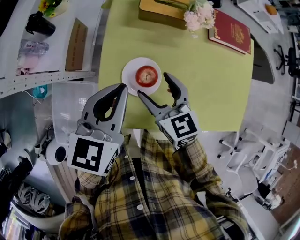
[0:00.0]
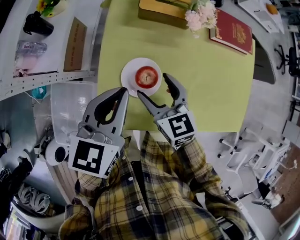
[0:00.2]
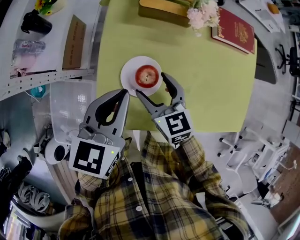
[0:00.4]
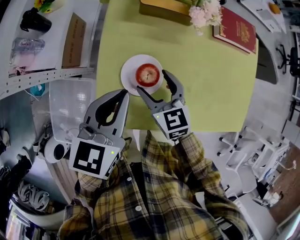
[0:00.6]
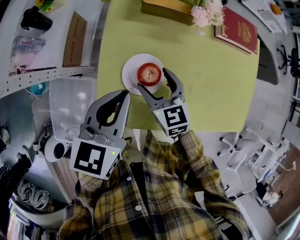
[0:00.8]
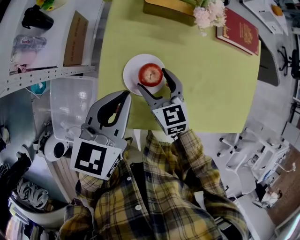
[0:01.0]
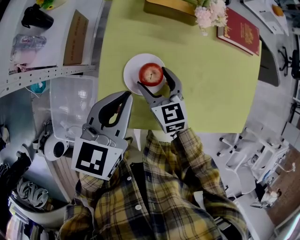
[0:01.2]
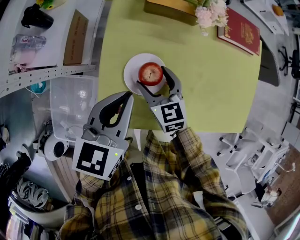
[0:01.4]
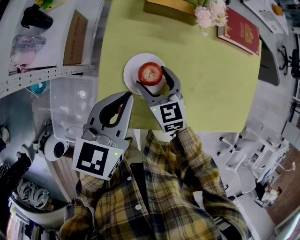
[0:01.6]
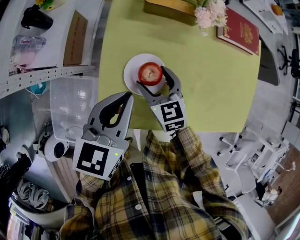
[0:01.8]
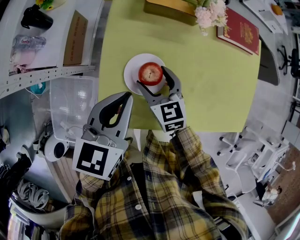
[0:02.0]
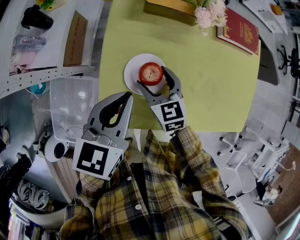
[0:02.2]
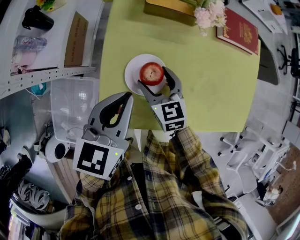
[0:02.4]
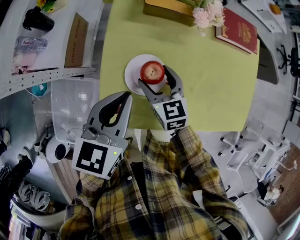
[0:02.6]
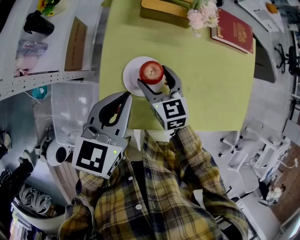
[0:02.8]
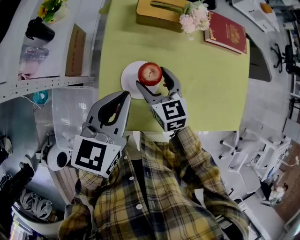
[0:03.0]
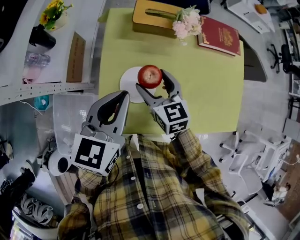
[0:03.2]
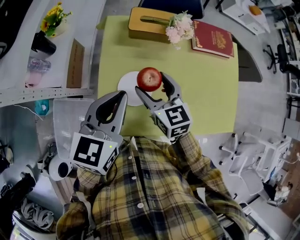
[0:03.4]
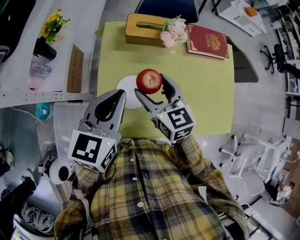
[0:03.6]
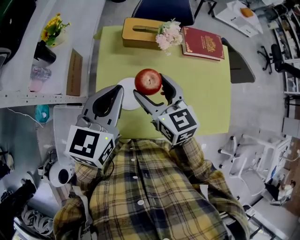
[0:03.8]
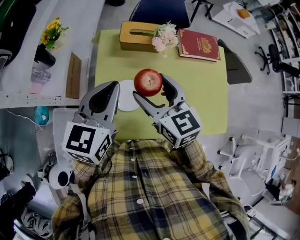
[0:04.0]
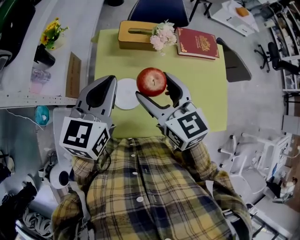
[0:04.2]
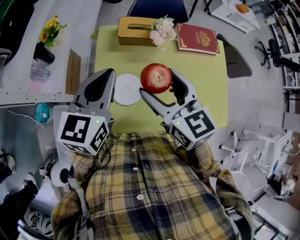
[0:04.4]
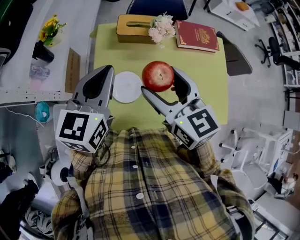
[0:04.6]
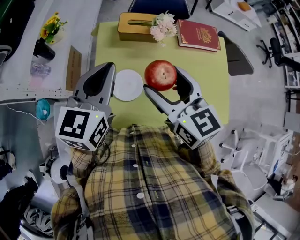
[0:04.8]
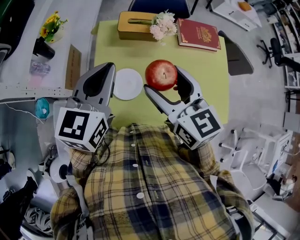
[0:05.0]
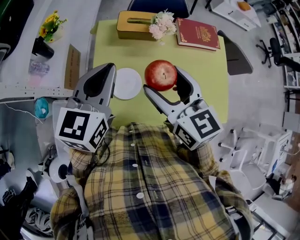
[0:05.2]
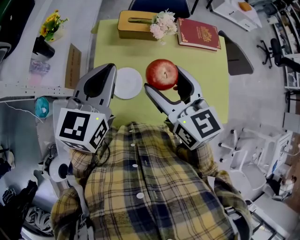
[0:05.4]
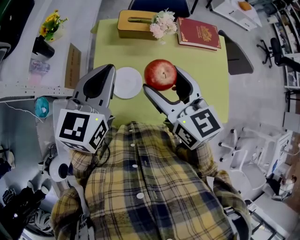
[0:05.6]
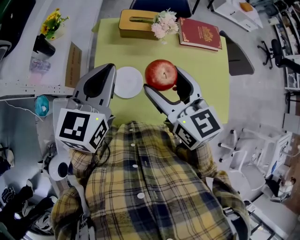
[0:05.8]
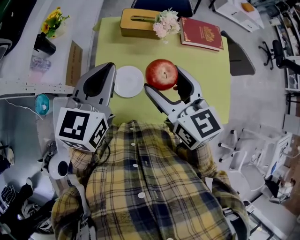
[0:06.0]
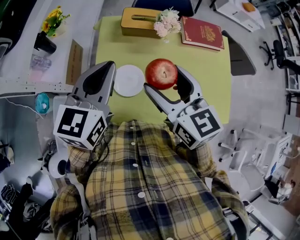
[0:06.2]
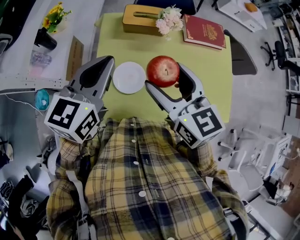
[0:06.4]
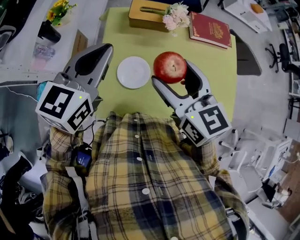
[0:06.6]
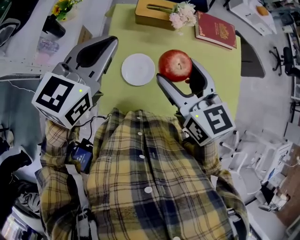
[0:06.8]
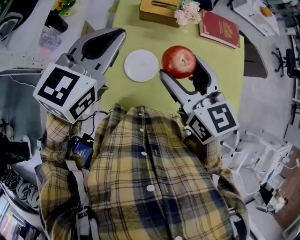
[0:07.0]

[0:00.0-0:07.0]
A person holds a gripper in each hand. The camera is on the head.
0:00.0 to 0:01.4: The right gripper goes roughly 10 cm downward.
0:01.4 to 0:02.8: The grippers move only a little.
0:02.8 to 0:04.2: The left gripper goes some 15 cm upward. The right gripper heads upward, covering approximately 25 cm.
0:04.2 to 0:07.0: The grippers make only small movements.

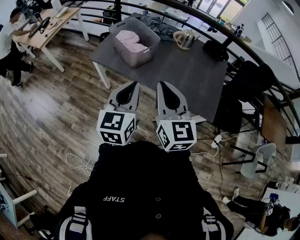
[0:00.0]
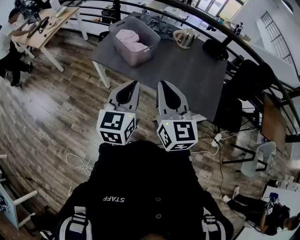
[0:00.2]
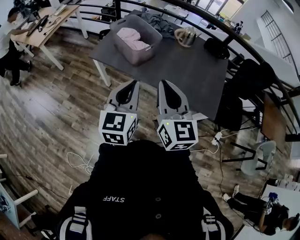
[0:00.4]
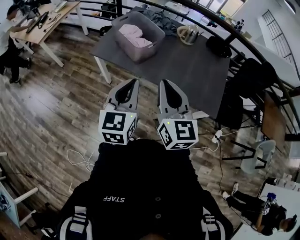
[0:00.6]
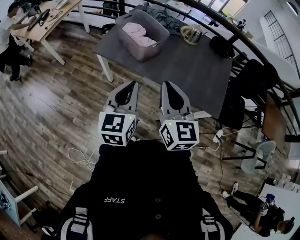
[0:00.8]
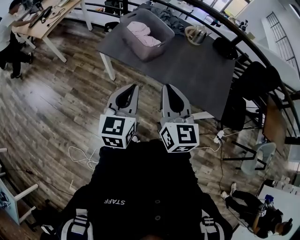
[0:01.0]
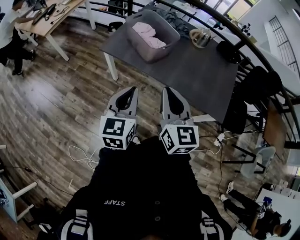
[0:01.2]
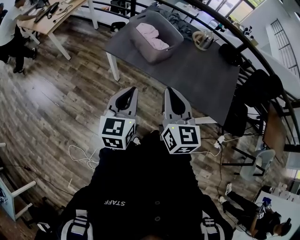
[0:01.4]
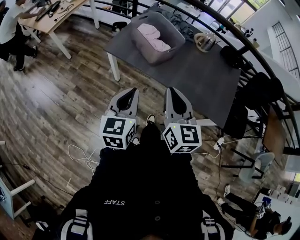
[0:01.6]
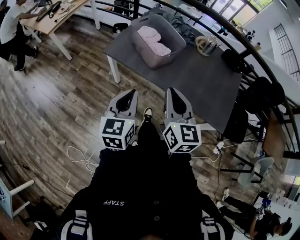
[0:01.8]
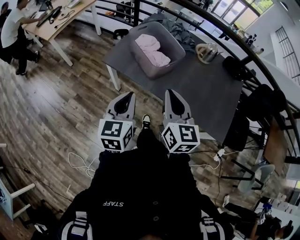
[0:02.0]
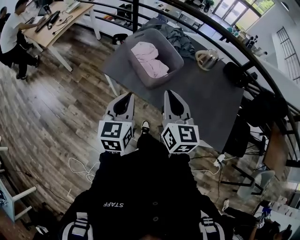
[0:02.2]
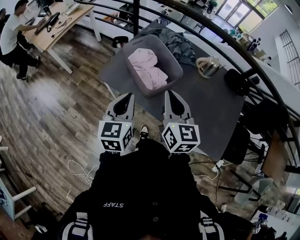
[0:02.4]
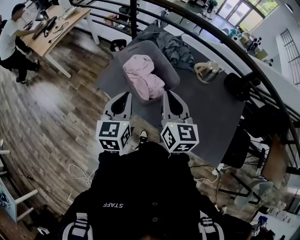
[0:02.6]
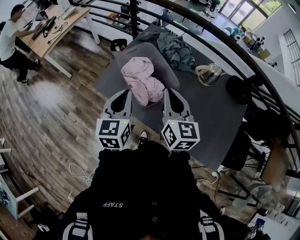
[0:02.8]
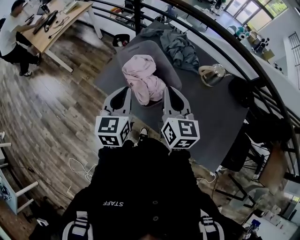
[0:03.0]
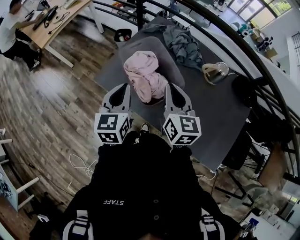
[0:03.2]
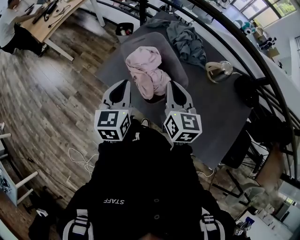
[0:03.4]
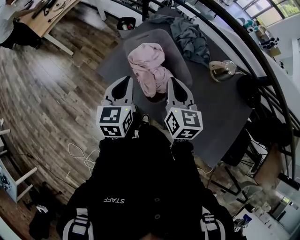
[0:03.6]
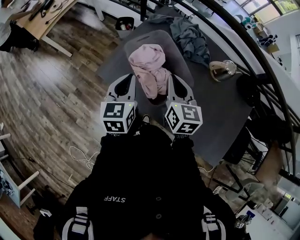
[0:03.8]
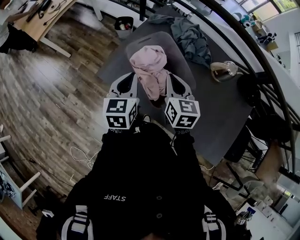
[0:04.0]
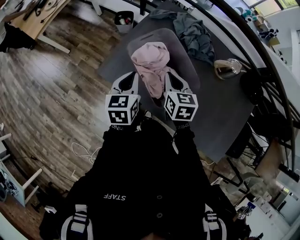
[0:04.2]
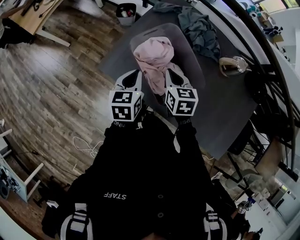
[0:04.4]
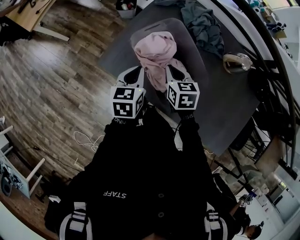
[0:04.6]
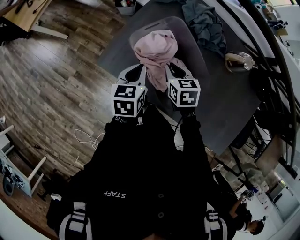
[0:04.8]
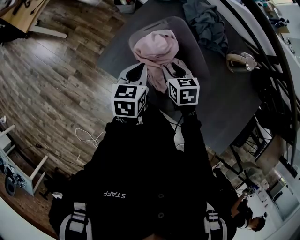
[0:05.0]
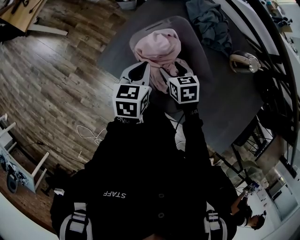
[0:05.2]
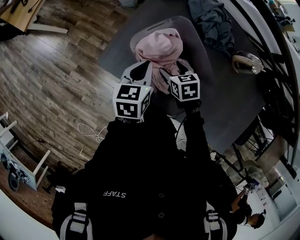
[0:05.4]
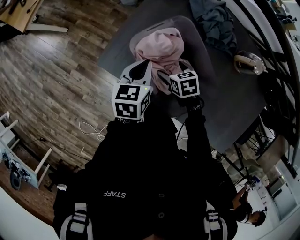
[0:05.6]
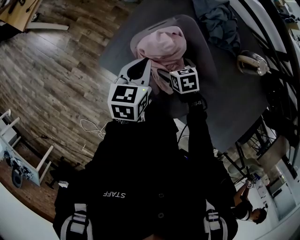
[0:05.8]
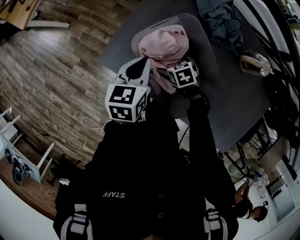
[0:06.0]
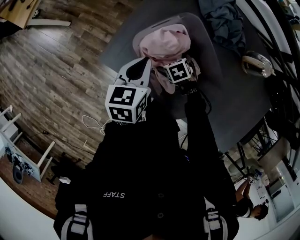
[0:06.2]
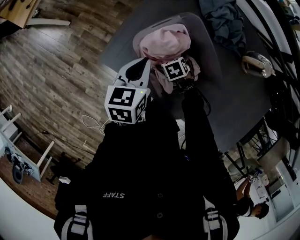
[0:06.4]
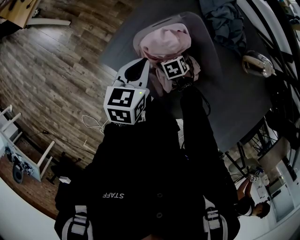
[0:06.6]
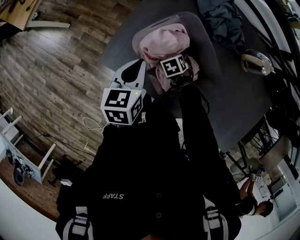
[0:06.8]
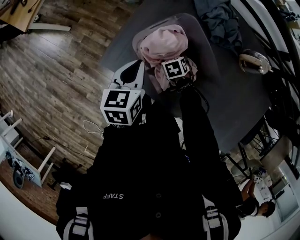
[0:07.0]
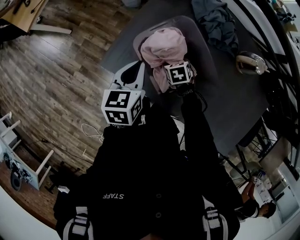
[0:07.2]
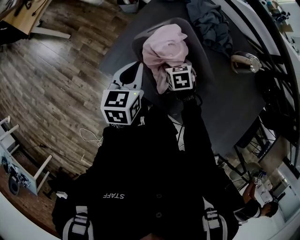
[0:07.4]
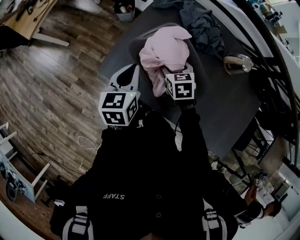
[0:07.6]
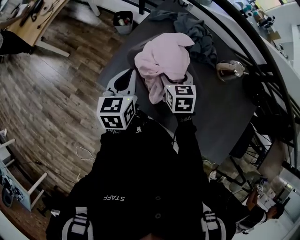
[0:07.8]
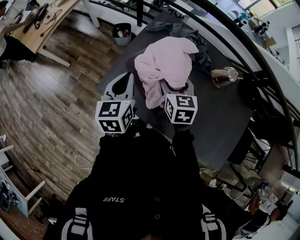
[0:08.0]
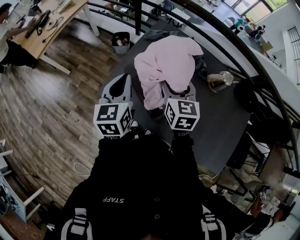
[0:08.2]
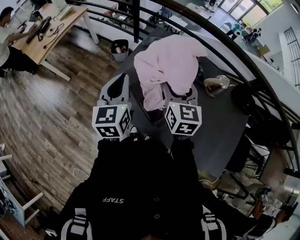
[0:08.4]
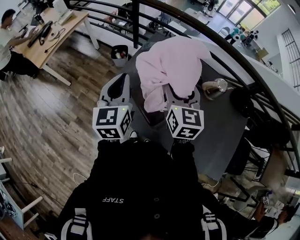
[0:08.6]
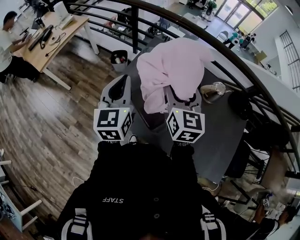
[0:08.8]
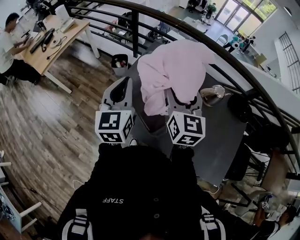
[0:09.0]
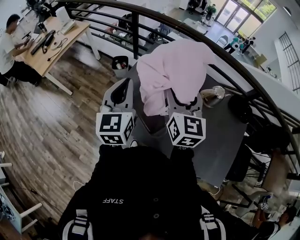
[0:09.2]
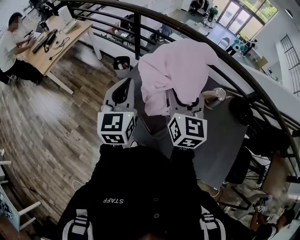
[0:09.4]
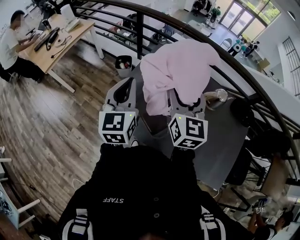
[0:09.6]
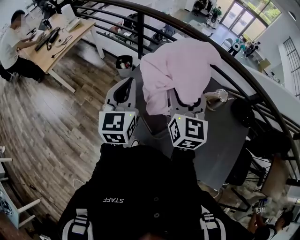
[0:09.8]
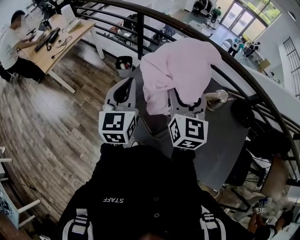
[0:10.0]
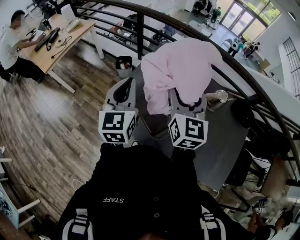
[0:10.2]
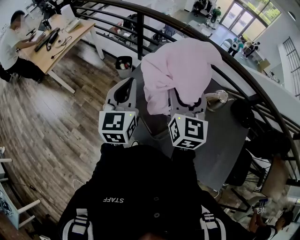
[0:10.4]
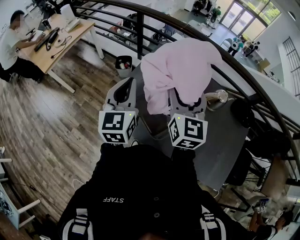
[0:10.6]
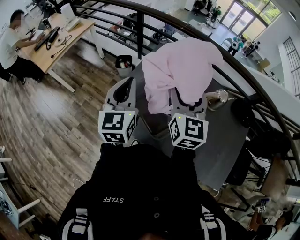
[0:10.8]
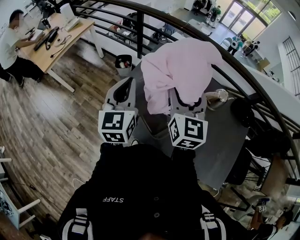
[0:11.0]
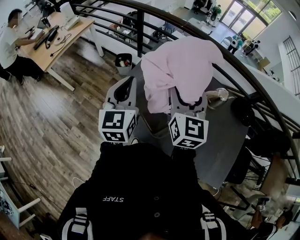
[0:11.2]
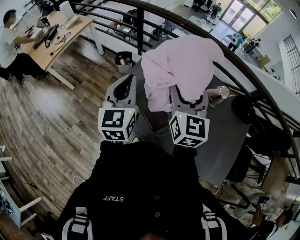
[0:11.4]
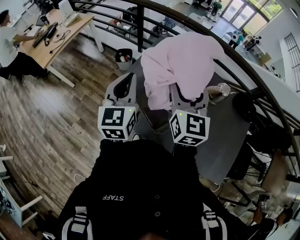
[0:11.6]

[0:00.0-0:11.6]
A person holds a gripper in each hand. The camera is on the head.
0:00.0 to 0:01.4: Both grippers move to the left and downward, about 15 cm.
0:01.4 to 0:02.8: Both grippers travel together forward, about 35 cm.
0:02.8 to 0:04.4: The right gripper moves downward, forward and to the left, approximately 25 cm, and rotates about 30 degrees. The left gripper is displaced downward and forward by roughly 20 cm, and rotates some 20 degrees.
0:04.4 to 0:05.8: The left gripper moves forward, some 10 cm. The right gripper goes approximately 20 cm downward, rotates some 30 degrees, and opens its fingers.
0:05.8 to 0:07.2: The right gripper moves about 10 cm downward and comes back, and closes its fingers.
0:07.2 to 0:08.8: The left gripper shifts some 25 cm upward, and swivels roughly 30 degrees; the right gripper shifts some 50 cm upward, and tilts its fingers roughly 60 degrees upward.
0:08.8 to 0:10.2: The grippers move only a little.
0:10.2 to 0:11.6: Both grippers stay put.

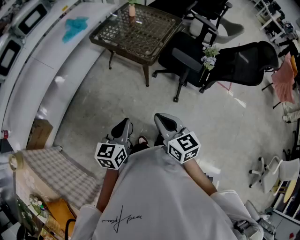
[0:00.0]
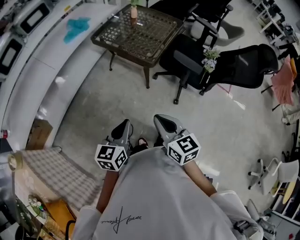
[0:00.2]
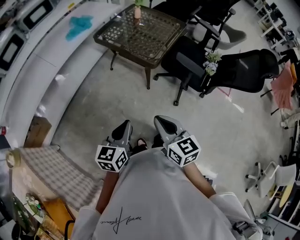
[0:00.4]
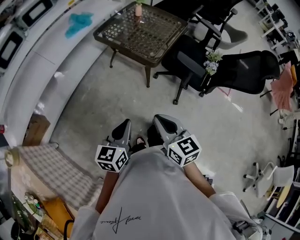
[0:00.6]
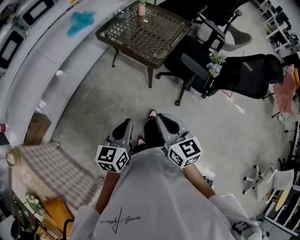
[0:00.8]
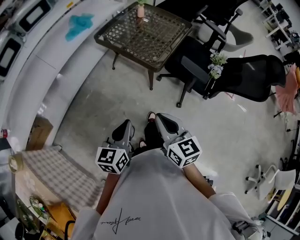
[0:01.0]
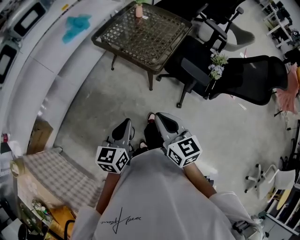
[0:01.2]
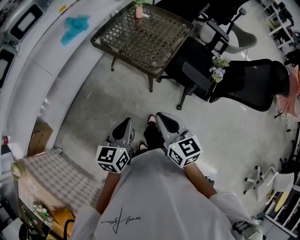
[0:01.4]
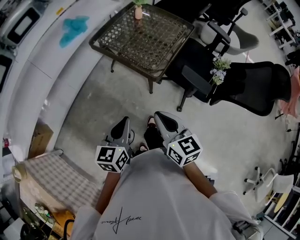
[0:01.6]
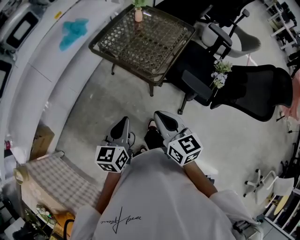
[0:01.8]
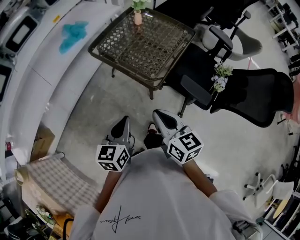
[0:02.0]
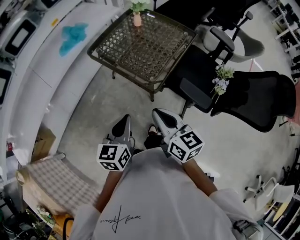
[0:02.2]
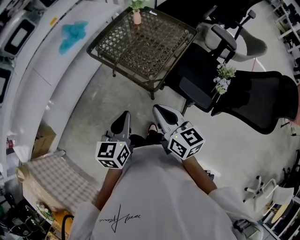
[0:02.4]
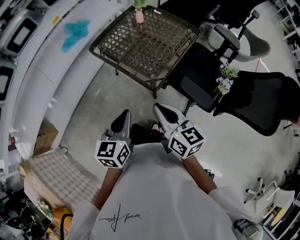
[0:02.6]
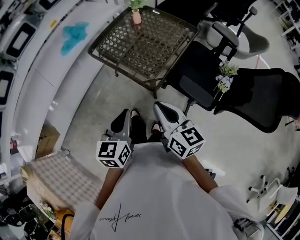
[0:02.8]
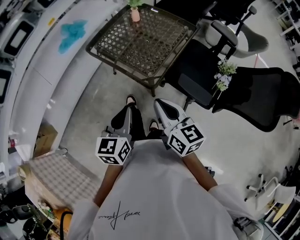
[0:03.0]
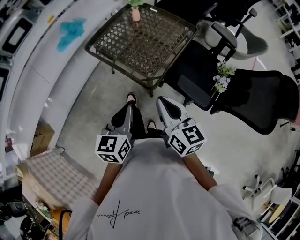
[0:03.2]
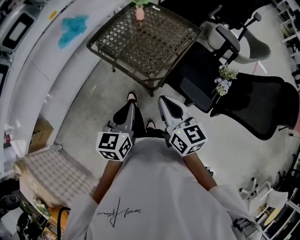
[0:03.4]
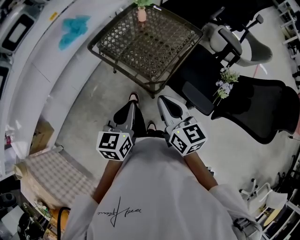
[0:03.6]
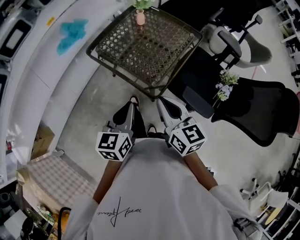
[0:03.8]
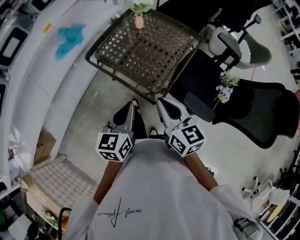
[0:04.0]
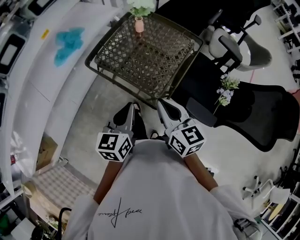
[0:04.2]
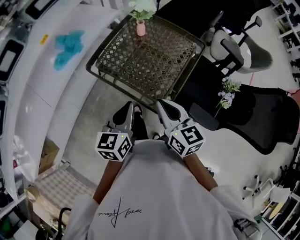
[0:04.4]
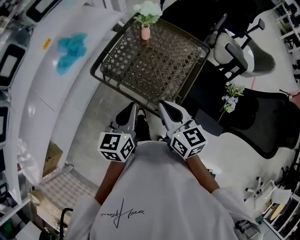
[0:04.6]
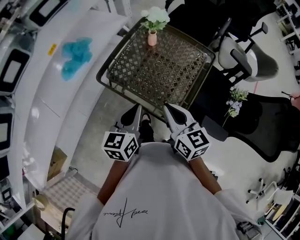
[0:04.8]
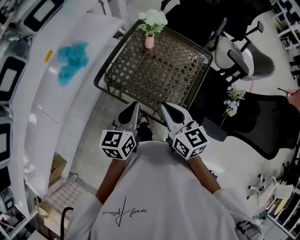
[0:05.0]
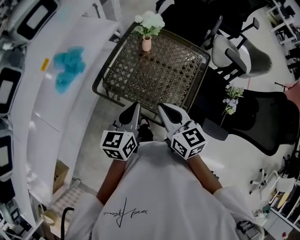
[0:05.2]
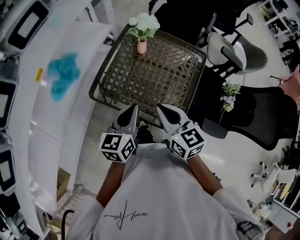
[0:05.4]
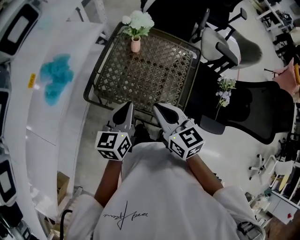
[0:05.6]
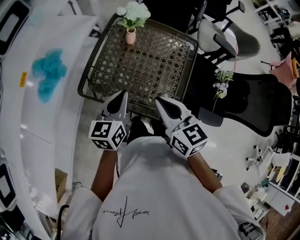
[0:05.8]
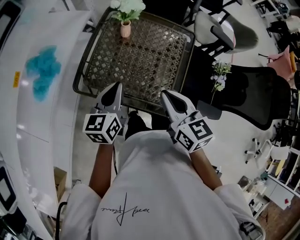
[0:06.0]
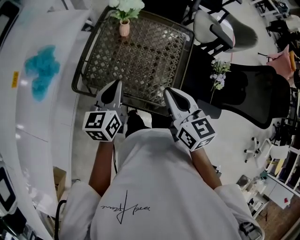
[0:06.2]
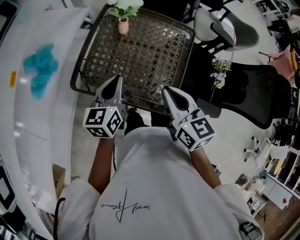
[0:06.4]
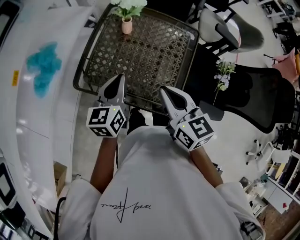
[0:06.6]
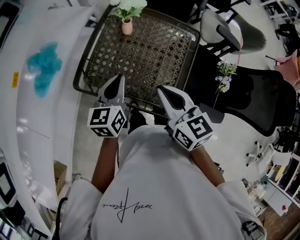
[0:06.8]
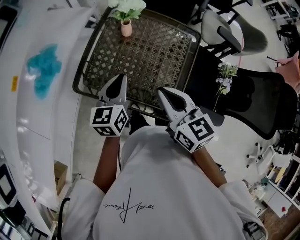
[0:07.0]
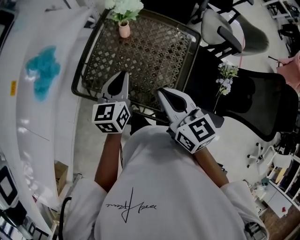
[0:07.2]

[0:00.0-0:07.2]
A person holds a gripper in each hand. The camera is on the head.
0:00.0 to 0:01.4: Both grippers move forward, some 15 cm.
0:01.4 to 0:02.8: The two grippers go about 15 cm forward and to the right.
0:02.8 to 0:04.4: The two grippers go approximately 20 cm forward.
0:04.4 to 0:05.8: Both grippers travel together forward and to the left, some 15 cm.
0:05.8 to 0:07.2: The right gripper shifts approximately 5 cm to the right; the left gripper heads forward and to the right, covering roughly 10 cm.
